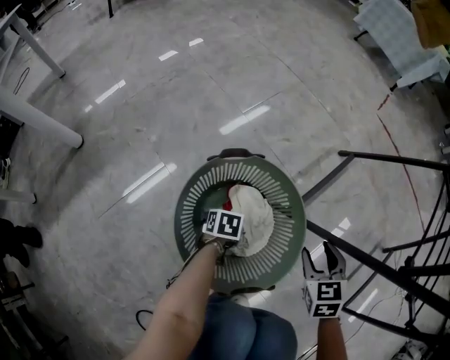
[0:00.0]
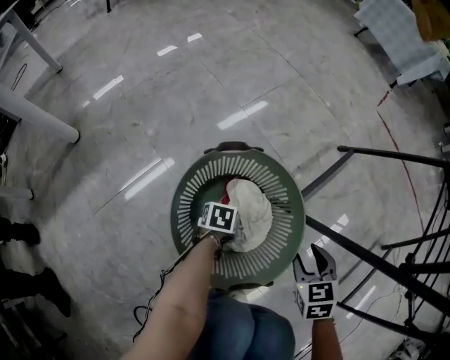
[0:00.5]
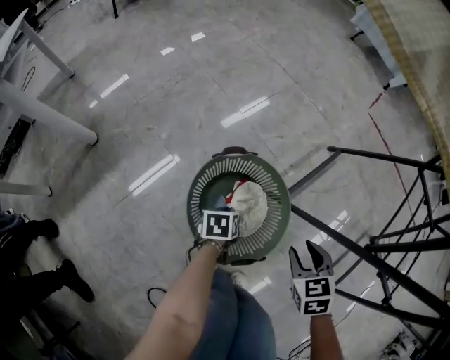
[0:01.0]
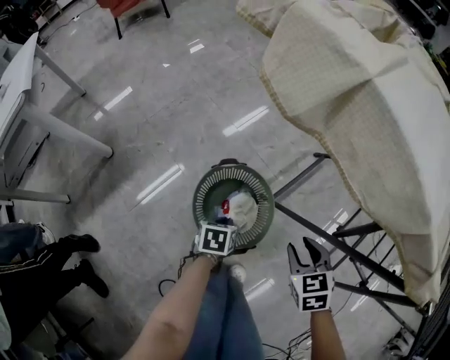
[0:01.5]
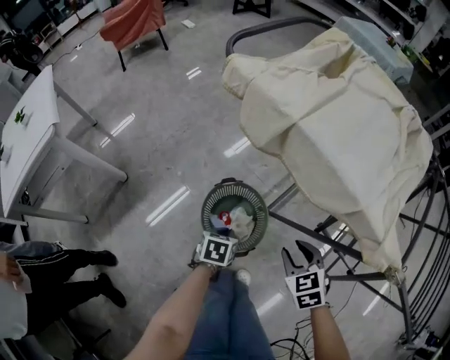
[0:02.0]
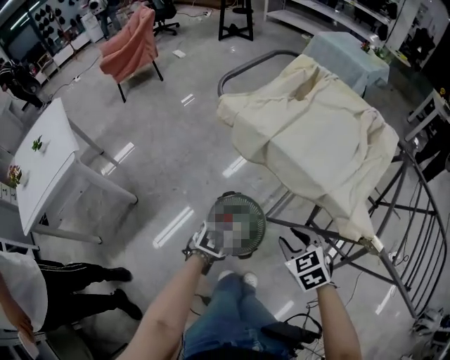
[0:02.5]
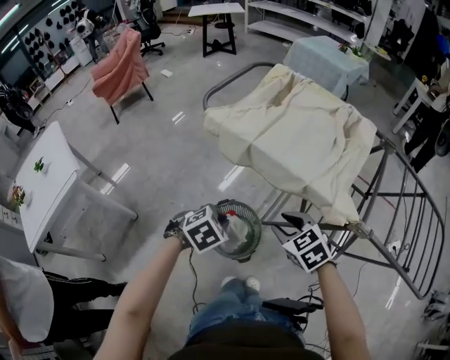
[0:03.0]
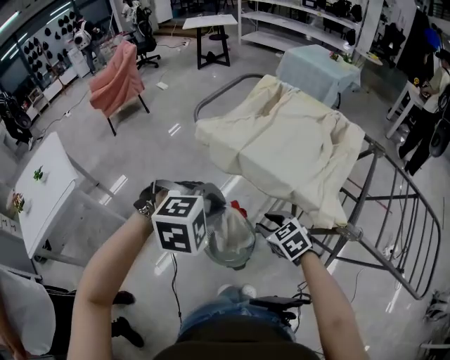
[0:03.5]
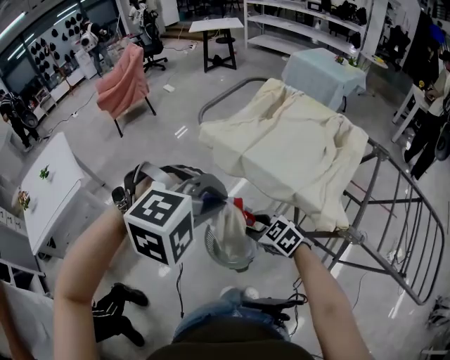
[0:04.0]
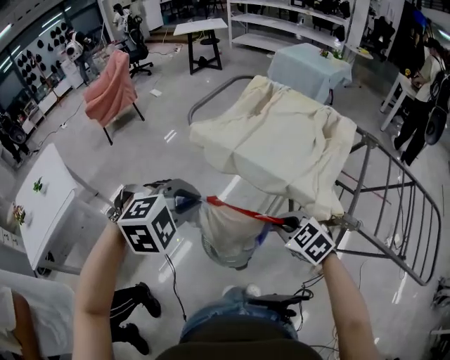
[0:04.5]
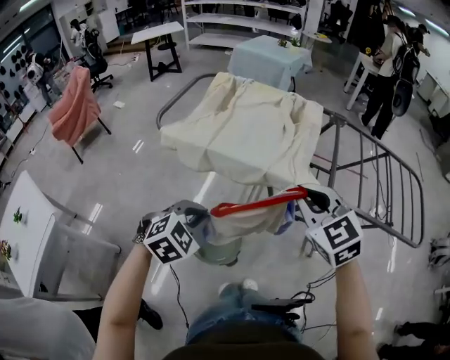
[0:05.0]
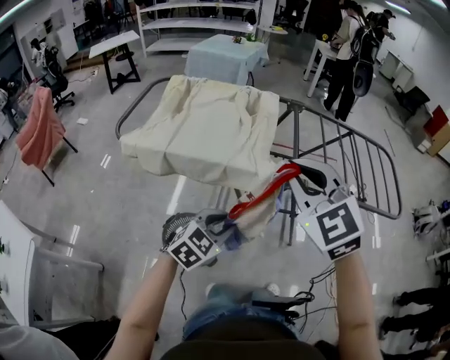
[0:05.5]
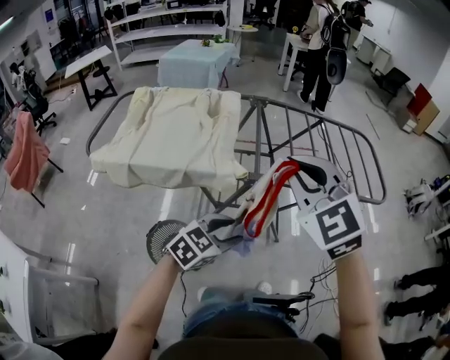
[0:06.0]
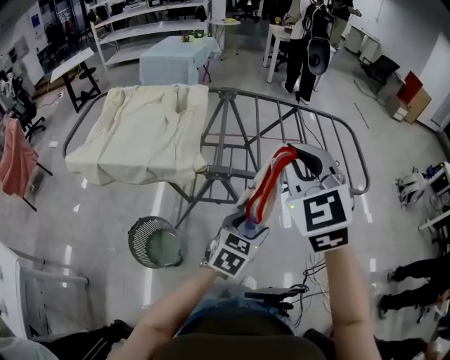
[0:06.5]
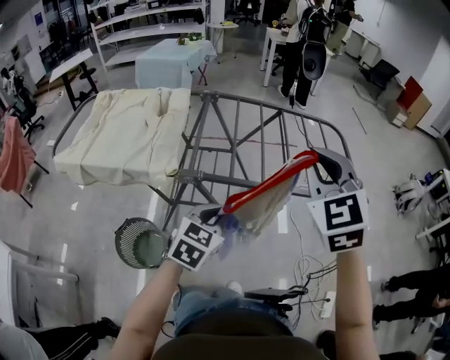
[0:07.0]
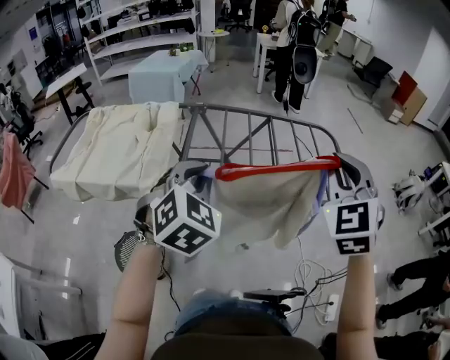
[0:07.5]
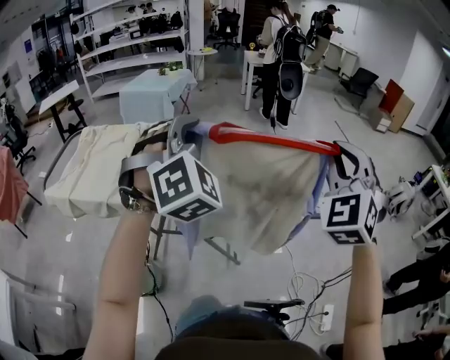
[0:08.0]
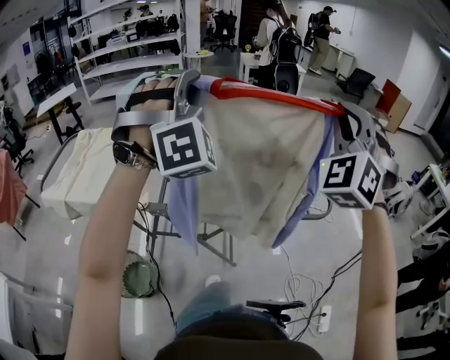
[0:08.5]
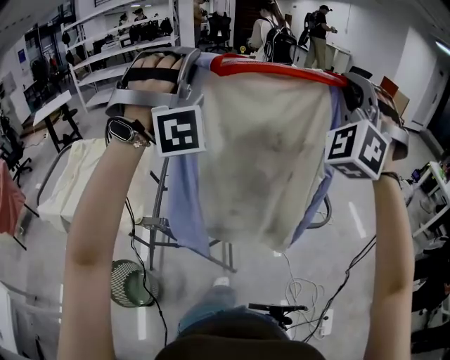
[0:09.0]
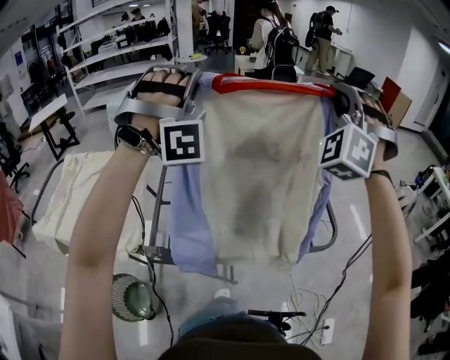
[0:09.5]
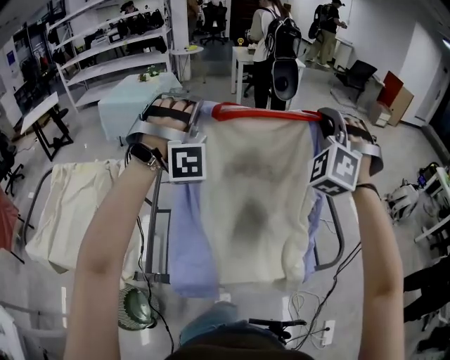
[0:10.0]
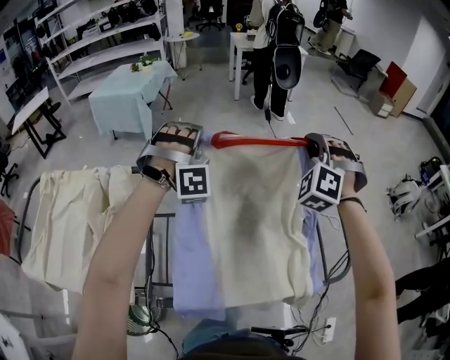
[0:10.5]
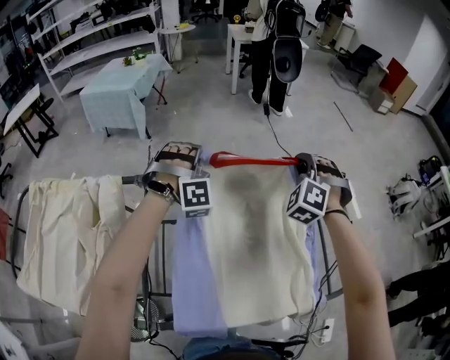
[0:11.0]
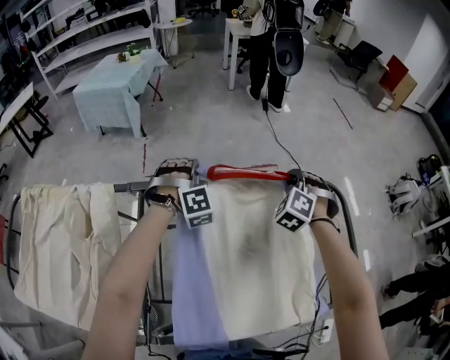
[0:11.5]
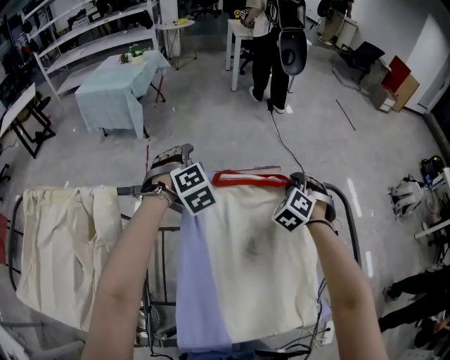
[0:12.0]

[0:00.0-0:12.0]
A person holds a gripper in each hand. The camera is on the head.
0:00.0 to 0:02.0: Both grippers move upward, about 40 cm.
0:02.0 to 0:04.0: The right gripper is displaced upward and to the left by approximately 15 cm, and turns by approximately 30 degrees. Meanwhile the left gripper is displaced upward by roughly 50 cm, and twists about 110 degrees clockwise, seen from behind.
0:04.0 to 0:06.0: The right gripper shifts by some 50 cm, and swivels about 60 degrees, while the left gripper moves roughly 30 cm, and rotates roughly 50 degrees.
0:06.0 to 0:08.0: The left gripper shifts about 40 cm upward, forward and to the right, and rotates about 80 degrees. The right gripper moves to the right, about 40 cm, and turns by about 40 degrees.
0:08.0 to 0:10.0: Both grippers move forward, approximately 35 cm. The right gripper turns by some 30 degrees; the left gripper turns by approximately 40 degrees.
0:10.0 to 0:12.0: Both grippers travel together downward and forward, roughly 35 cm. The left gripper tips its fingers downward by approximately 50 degrees, and opens its fingers. The right gripper points its fingers approximately 40 degrees further downward.

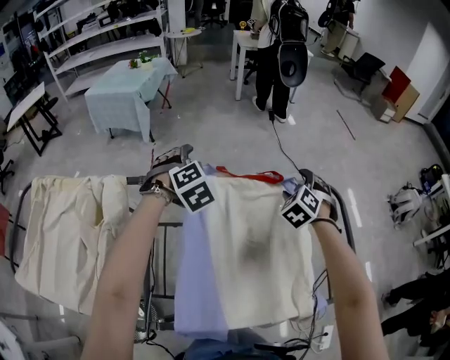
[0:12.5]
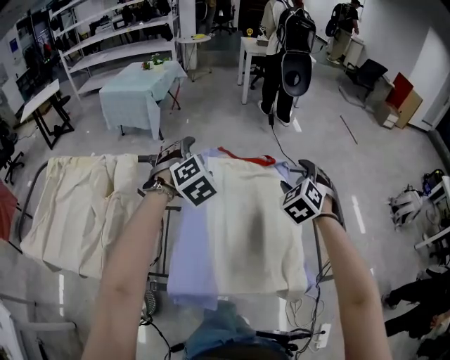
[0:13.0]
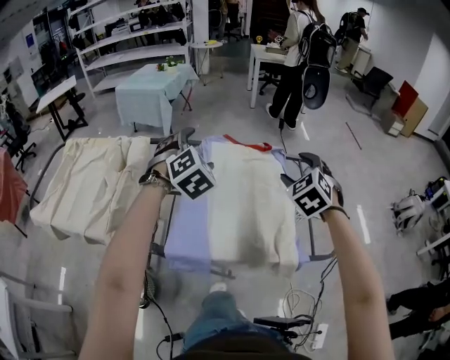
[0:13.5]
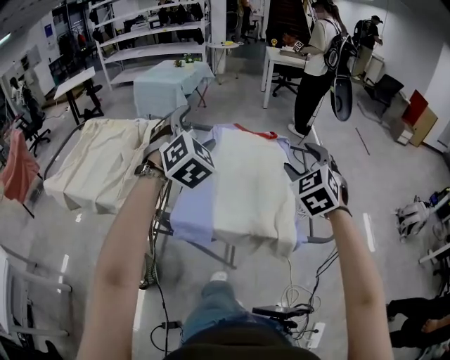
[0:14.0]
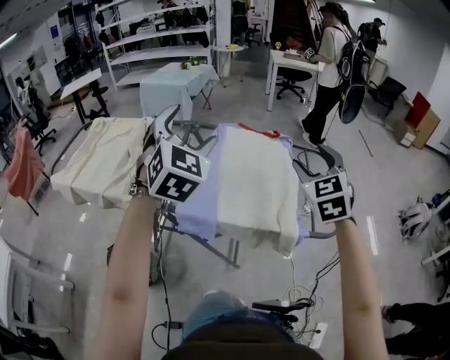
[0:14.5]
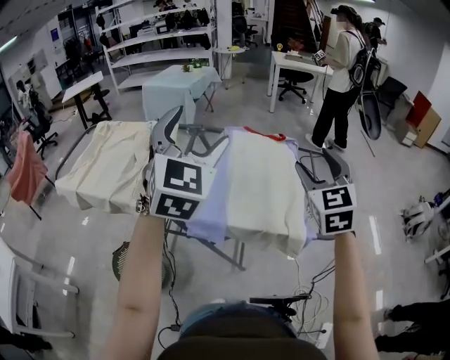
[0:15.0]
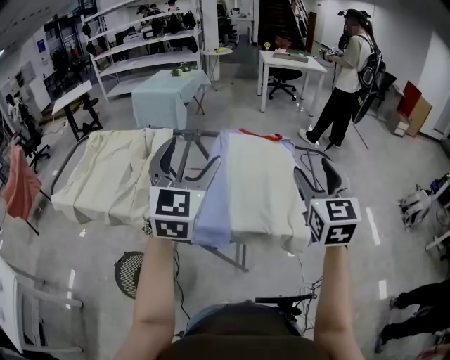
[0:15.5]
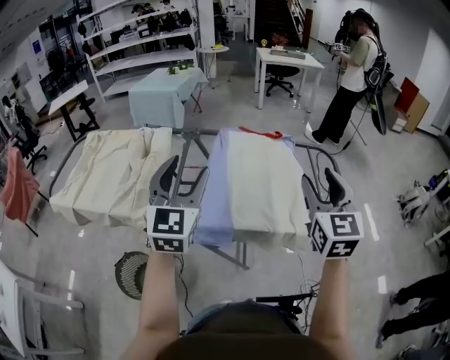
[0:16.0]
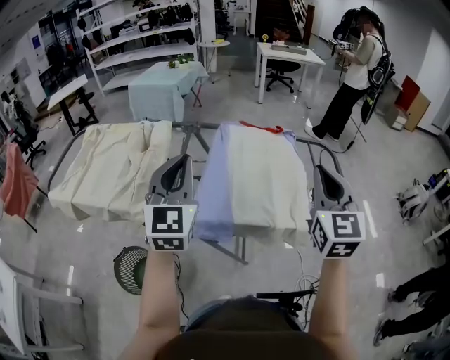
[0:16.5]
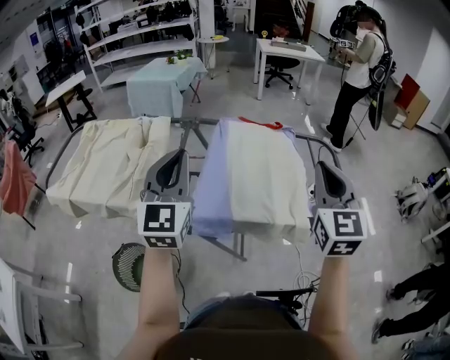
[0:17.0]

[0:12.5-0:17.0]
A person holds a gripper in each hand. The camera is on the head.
0:12.5 to 0:14.5: The grippers both shift backward and upward by approximately 40 cm. The right gripper changes its angle by some 40 degrees. Meanwhile the left gripper tilts its fingers approximately 40 degrees upward.
0:14.5 to 0:17.0: The left gripper shifts some 5 cm to the left, rotates roughly 30 degrees, and closes its fingers, while the right gripper is displaced backward by roughly 10 cm, changes its angle by roughly 20 degrees, and closes up.

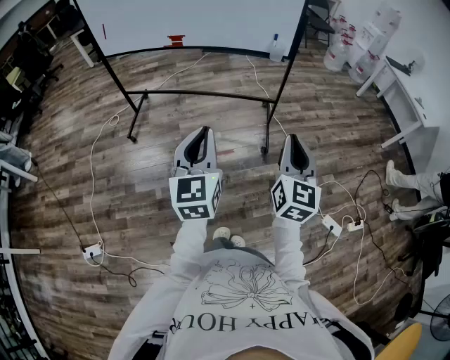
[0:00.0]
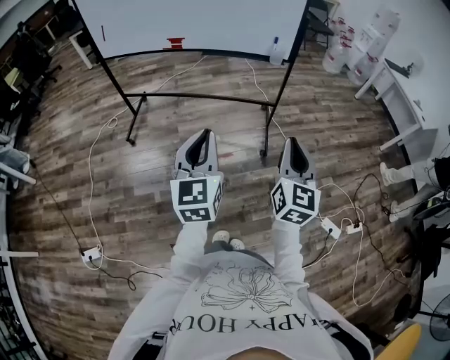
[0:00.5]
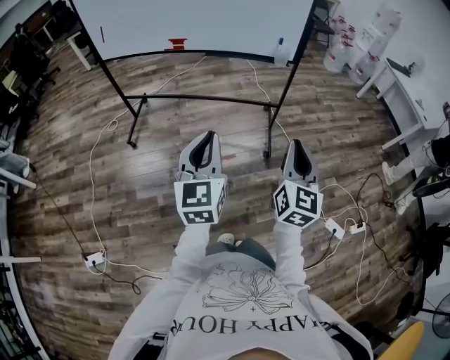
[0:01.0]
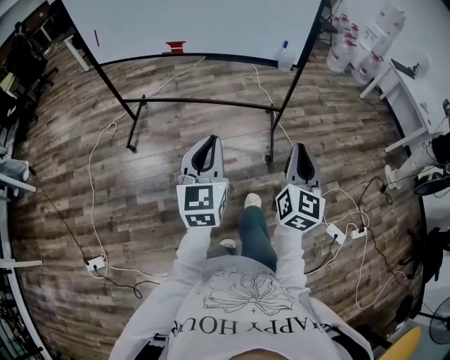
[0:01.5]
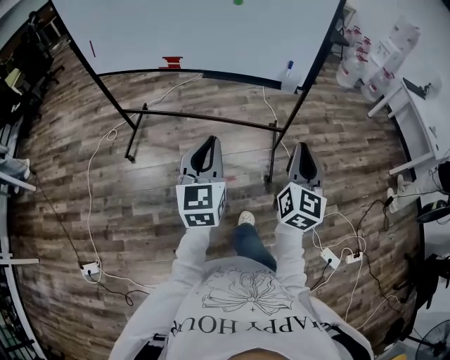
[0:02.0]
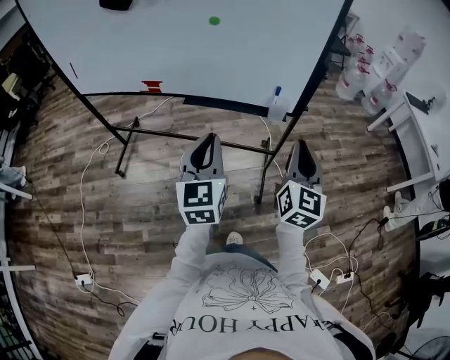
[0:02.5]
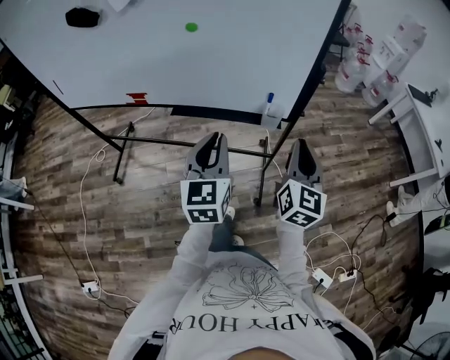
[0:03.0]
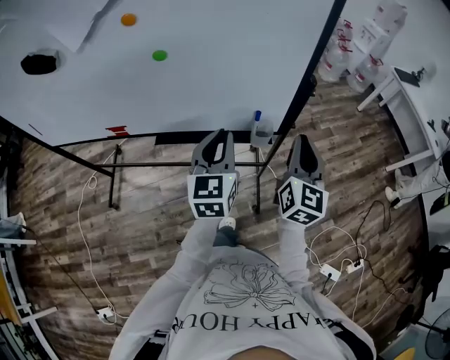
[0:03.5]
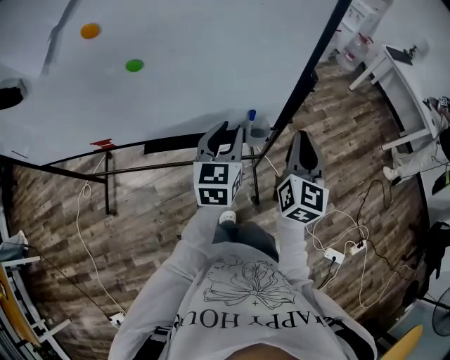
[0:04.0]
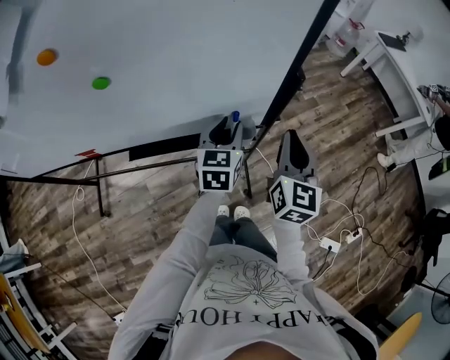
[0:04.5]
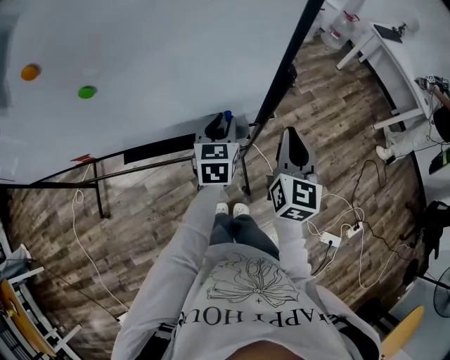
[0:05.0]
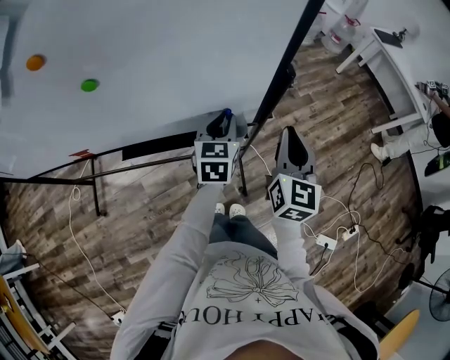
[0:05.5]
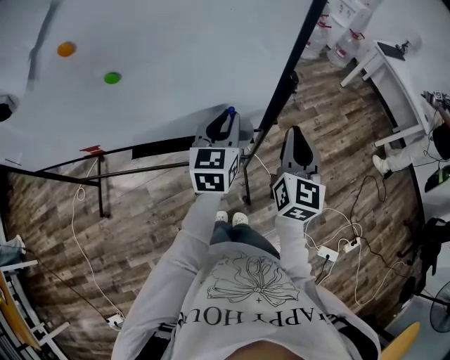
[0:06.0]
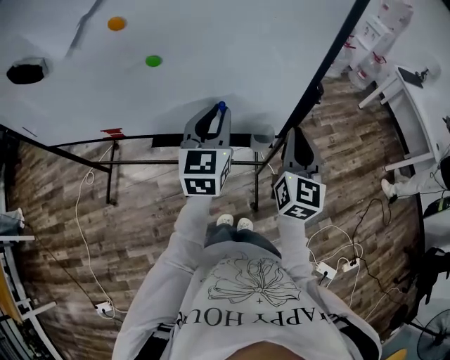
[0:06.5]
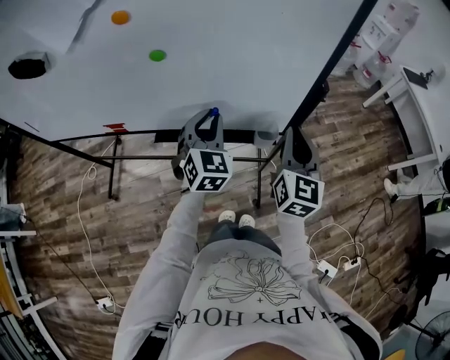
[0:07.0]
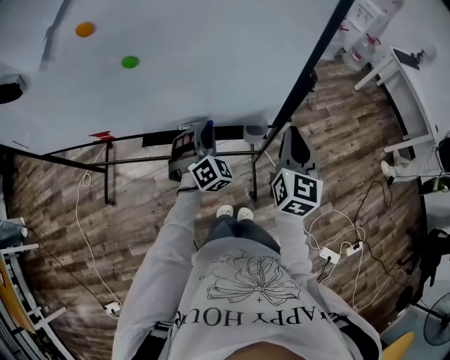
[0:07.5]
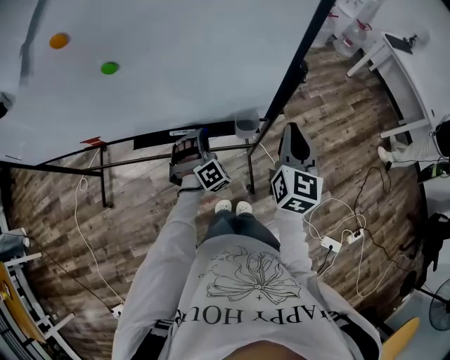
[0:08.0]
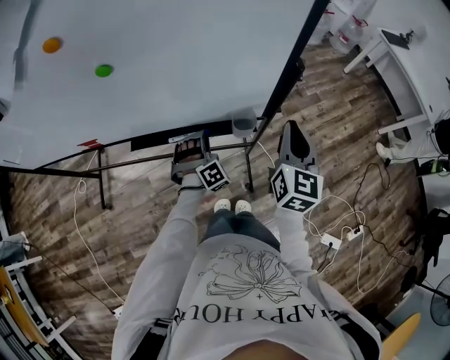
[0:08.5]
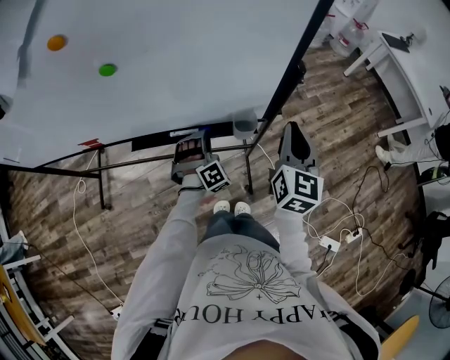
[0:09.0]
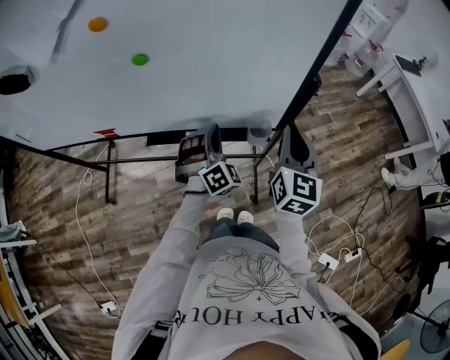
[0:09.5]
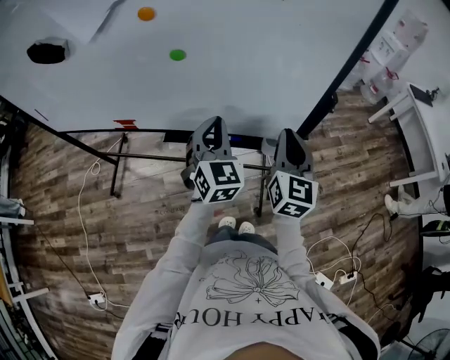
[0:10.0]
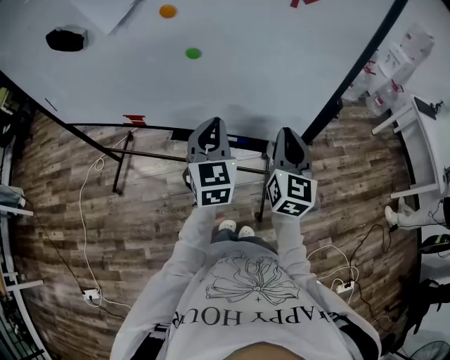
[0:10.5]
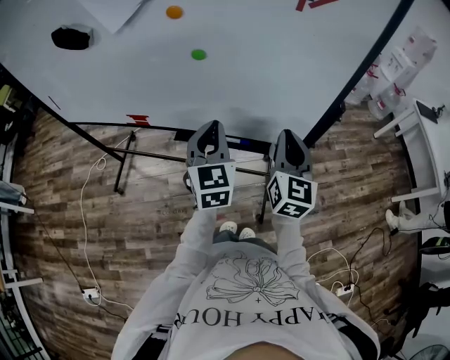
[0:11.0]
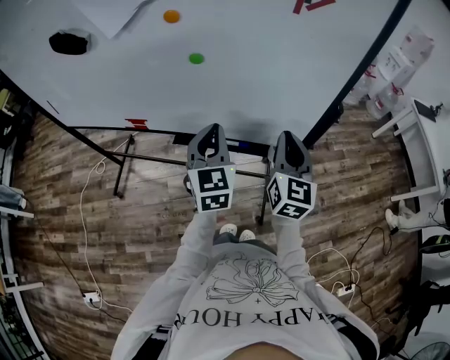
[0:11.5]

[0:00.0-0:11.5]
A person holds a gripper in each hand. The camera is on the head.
0:00.0 to 0:02.0: The two grippers go roughly 25 cm forward.
0:02.0 to 0:04.0: The grippers both shift forward by roughly 40 cm. The left gripper changes its angle by approximately 20 degrees.
0:04.0 to 0:06.0: The left gripper travels downward and back again, approximately 5 cm each way.
0:06.0 to 0:07.5: The right gripper ends up roughly 5 cm from where it was. The left gripper heads downward and to the left, covering some 15 cm, and rolls clockwise, seen from behind, by some 60 degrees.
0:07.5 to 0:09.5: The left gripper travels downward and back again, roughly 10 cm each way.
0:09.5 to 0:11.5: The left gripper moves upward and to the left, about 15 cm, and rolls counterclockwise, seen from behind, by roughly 60 degrees; the right gripper travels to the left by some 10 cm.
